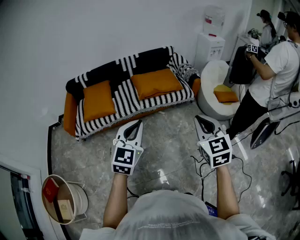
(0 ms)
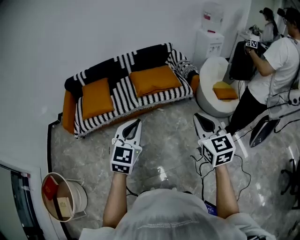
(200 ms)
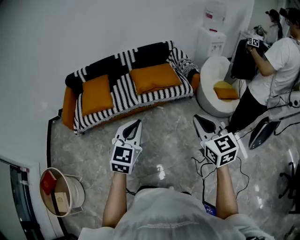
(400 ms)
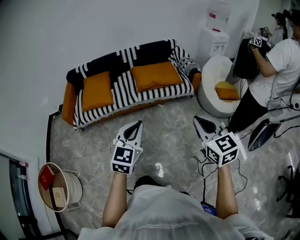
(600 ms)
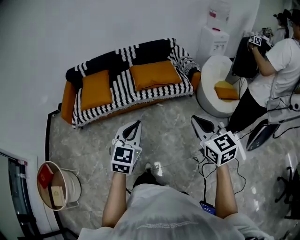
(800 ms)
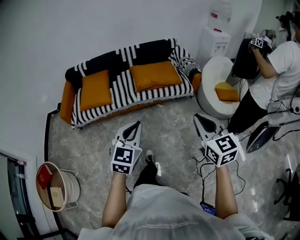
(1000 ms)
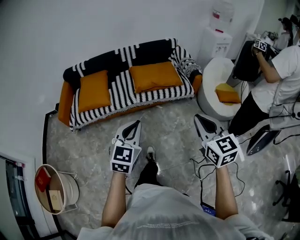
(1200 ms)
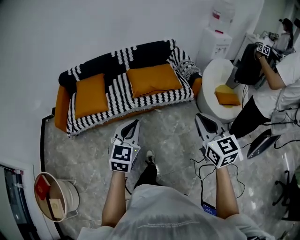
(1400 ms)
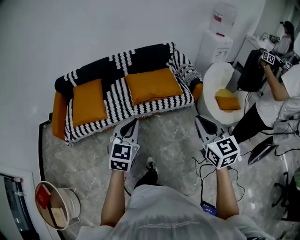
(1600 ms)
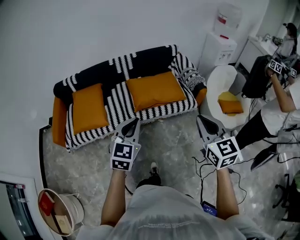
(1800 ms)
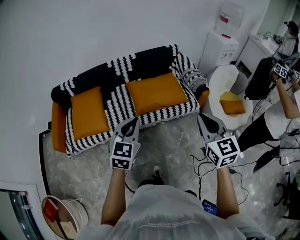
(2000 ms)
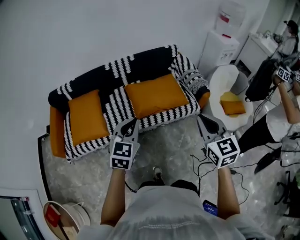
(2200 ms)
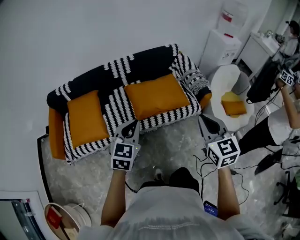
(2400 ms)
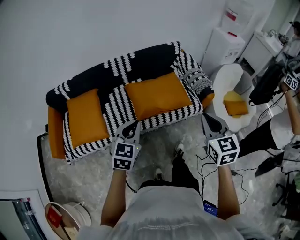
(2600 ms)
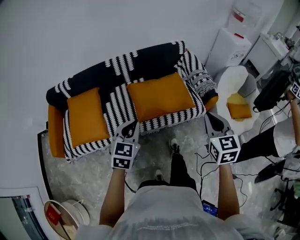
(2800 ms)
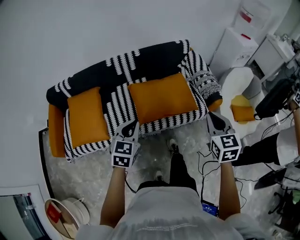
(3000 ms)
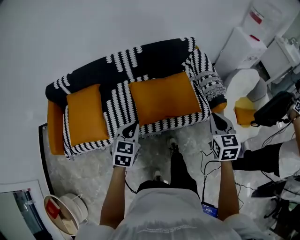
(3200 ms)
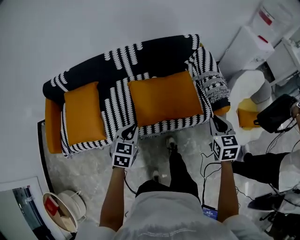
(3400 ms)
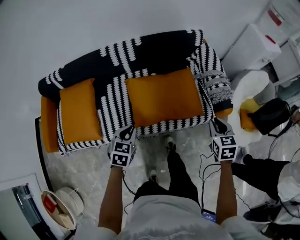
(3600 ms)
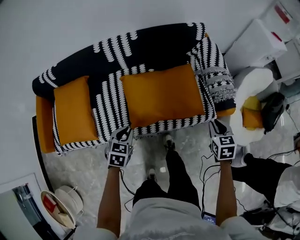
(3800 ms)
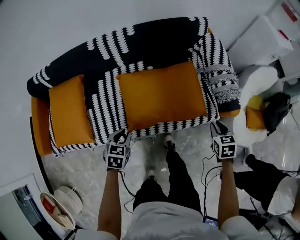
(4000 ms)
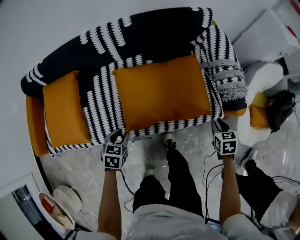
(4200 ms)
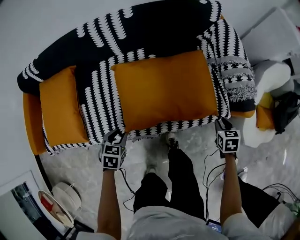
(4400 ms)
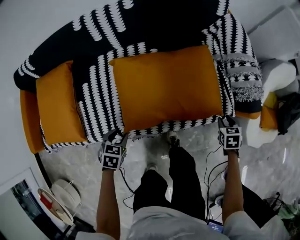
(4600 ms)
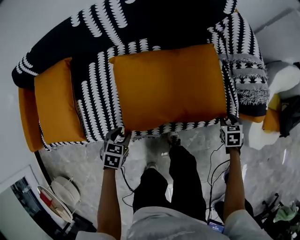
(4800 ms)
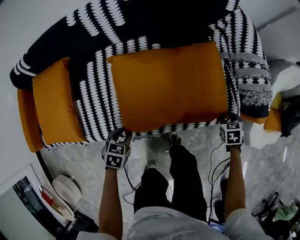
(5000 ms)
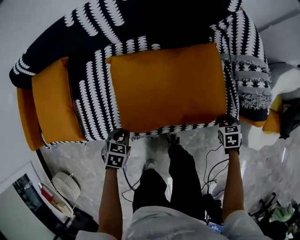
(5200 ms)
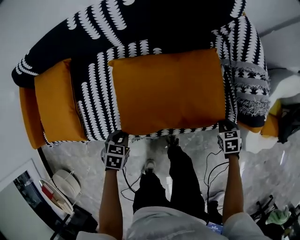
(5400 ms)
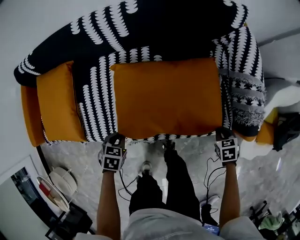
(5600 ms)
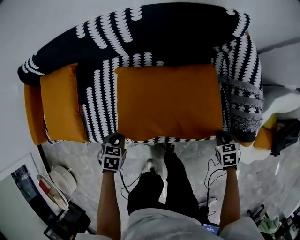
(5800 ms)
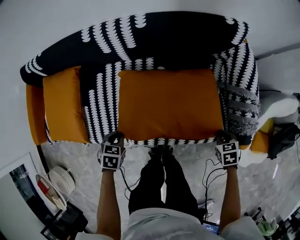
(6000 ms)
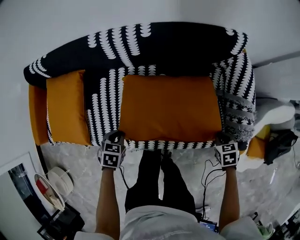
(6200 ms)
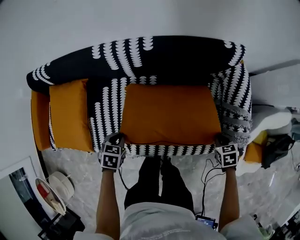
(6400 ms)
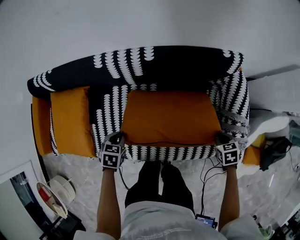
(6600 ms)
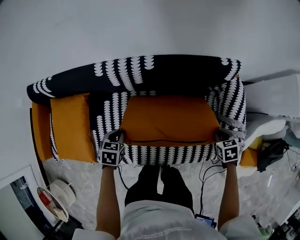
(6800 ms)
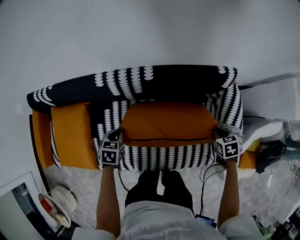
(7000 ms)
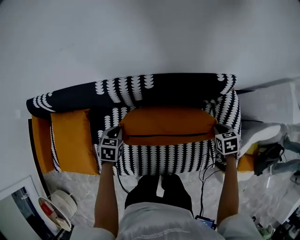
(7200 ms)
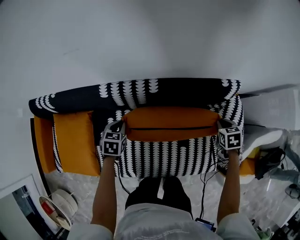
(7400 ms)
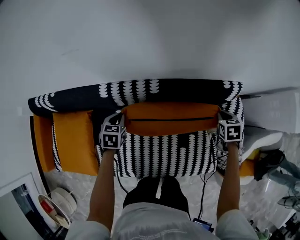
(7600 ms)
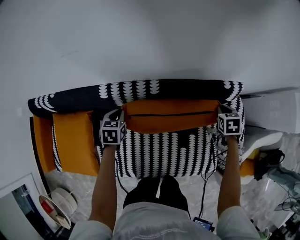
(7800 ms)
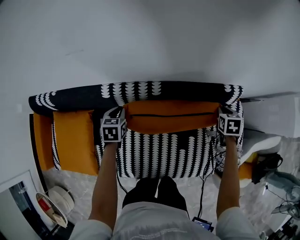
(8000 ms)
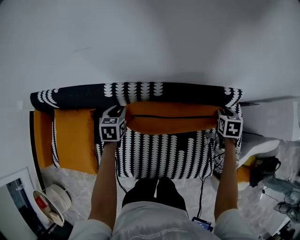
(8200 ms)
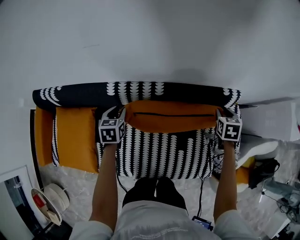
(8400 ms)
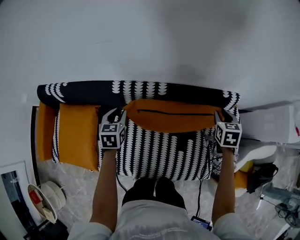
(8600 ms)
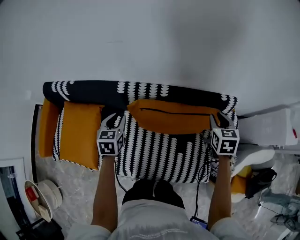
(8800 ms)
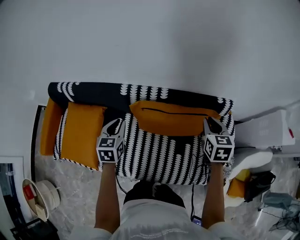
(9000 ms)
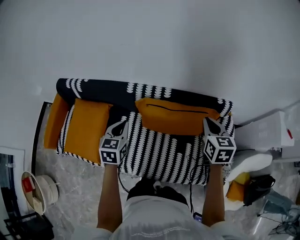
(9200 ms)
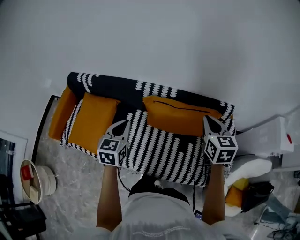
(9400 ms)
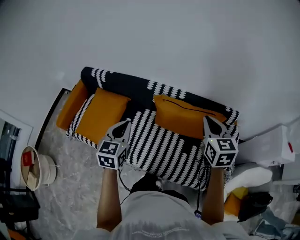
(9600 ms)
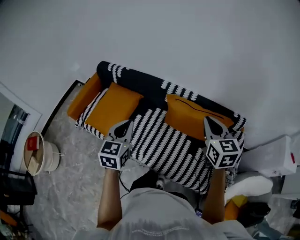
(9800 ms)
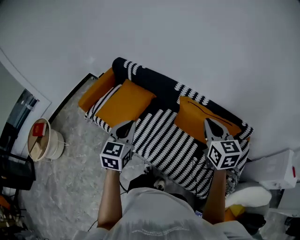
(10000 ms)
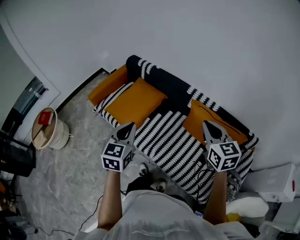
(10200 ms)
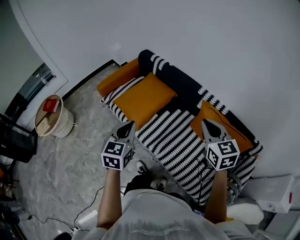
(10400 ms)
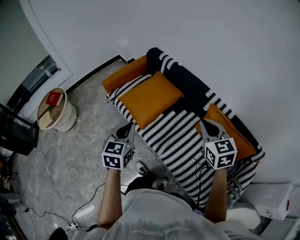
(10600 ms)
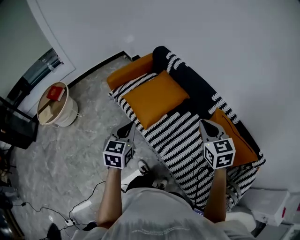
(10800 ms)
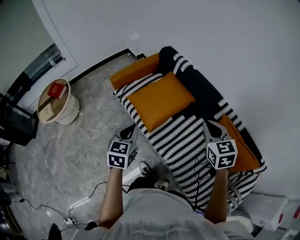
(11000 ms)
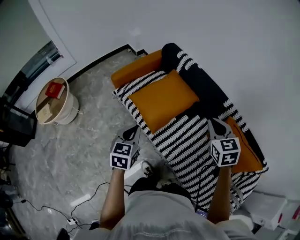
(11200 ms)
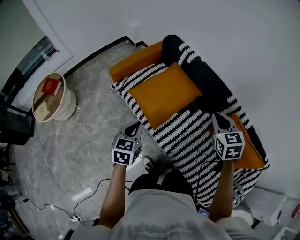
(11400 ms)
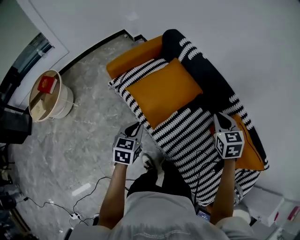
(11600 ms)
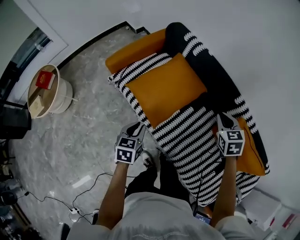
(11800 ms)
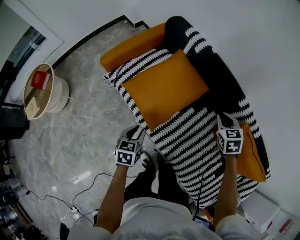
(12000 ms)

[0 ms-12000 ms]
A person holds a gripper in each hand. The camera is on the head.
0 ms to 1600 ms: Both grippers travel together forward, about 20 cm.
1600 ms to 3000 ms: Both grippers move forward, roughly 35 cm.
3000 ms to 4400 ms: The two grippers go some 40 cm downward. The left gripper angles its fingers downward, by approximately 30 degrees, and opens; the right gripper angles its fingers downward, by about 40 degrees, and opens.
4400 ms to 6000 ms: The left gripper reaches approximately 5 cm downward, then returns, and closes its fingers. The right gripper travels downward and back again, about 10 cm each way, and swivels some 20 degrees.
6000 ms to 7600 ms: The right gripper shifts by about 40 cm. The left gripper changes place by approximately 35 cm.
7600 ms to 9000 ms: The right gripper shifts some 25 cm upward and to the left, and rotates approximately 30 degrees, while the left gripper shifts some 20 cm upward and backward, and changes its angle by about 30 degrees.
9000 ms to 10400 ms: The right gripper changes place by approximately 40 cm, and swivels some 60 degrees. The left gripper shifts by about 50 cm, rotates some 30 degrees, and closes its fingers.
10400 ms to 12000 ms: The left gripper travels downward, forward and to the left by some 40 cm, rotates some 30 degrees, and opens up; the right gripper heads forward and downward, covering roughly 40 cm, and rotates some 30 degrees.

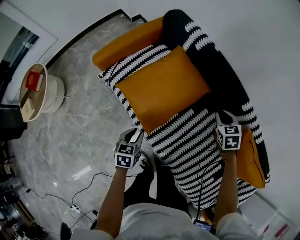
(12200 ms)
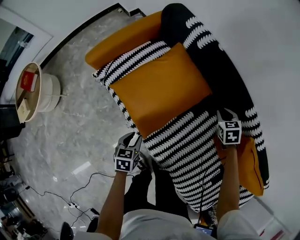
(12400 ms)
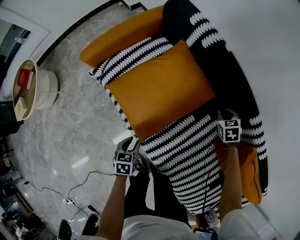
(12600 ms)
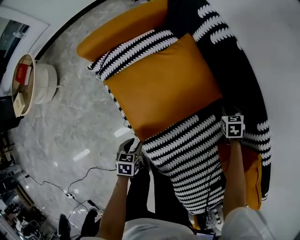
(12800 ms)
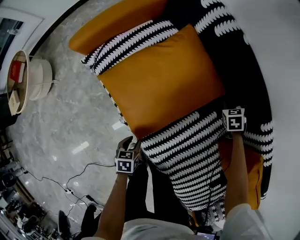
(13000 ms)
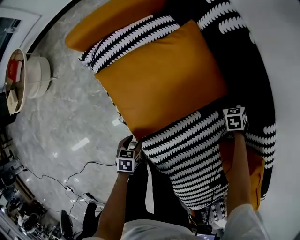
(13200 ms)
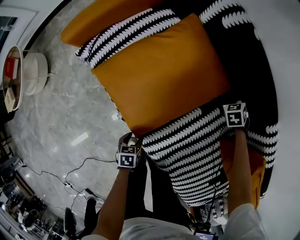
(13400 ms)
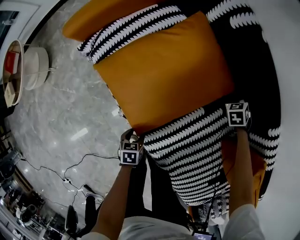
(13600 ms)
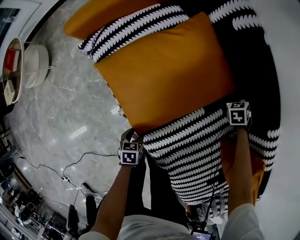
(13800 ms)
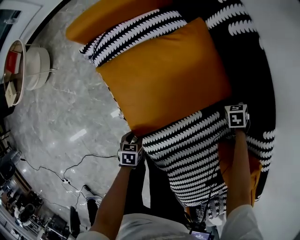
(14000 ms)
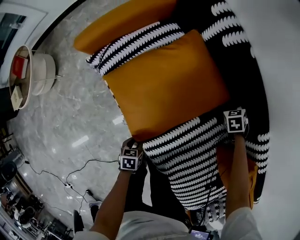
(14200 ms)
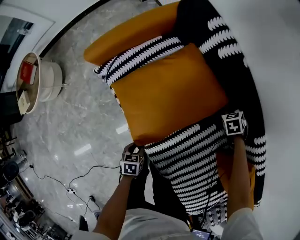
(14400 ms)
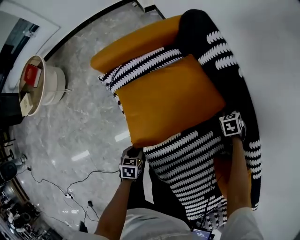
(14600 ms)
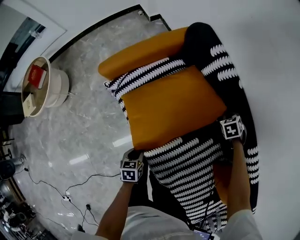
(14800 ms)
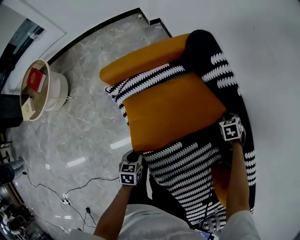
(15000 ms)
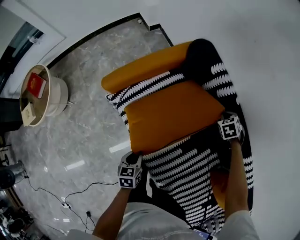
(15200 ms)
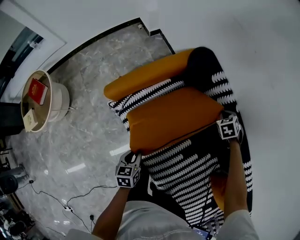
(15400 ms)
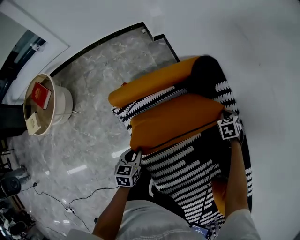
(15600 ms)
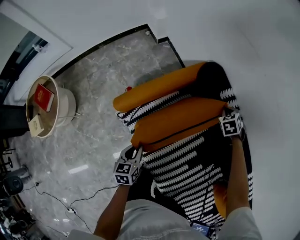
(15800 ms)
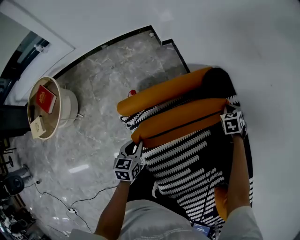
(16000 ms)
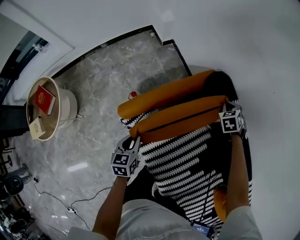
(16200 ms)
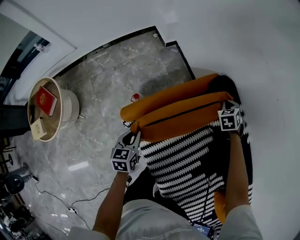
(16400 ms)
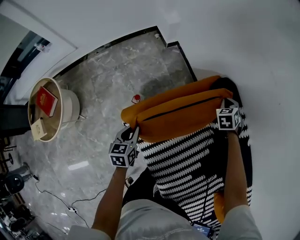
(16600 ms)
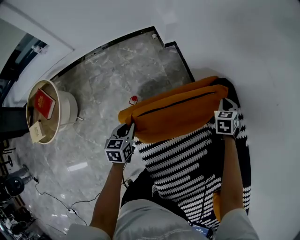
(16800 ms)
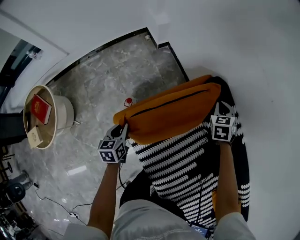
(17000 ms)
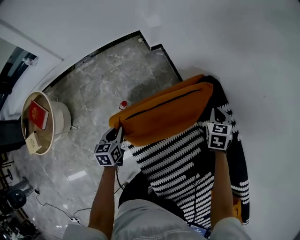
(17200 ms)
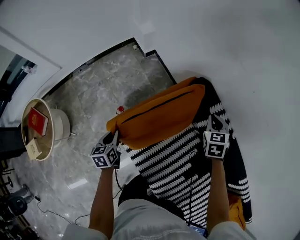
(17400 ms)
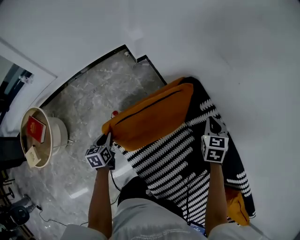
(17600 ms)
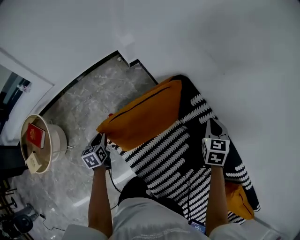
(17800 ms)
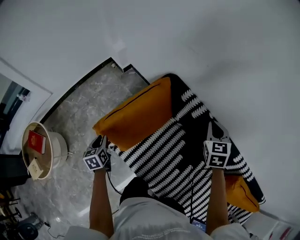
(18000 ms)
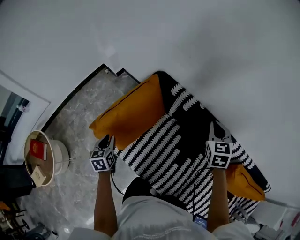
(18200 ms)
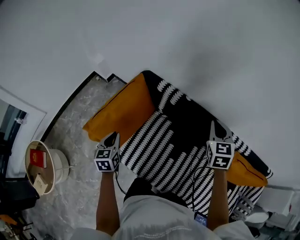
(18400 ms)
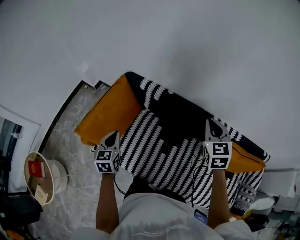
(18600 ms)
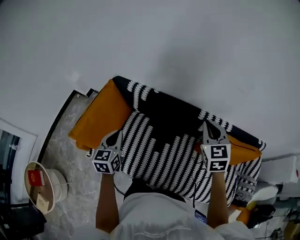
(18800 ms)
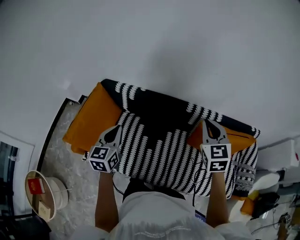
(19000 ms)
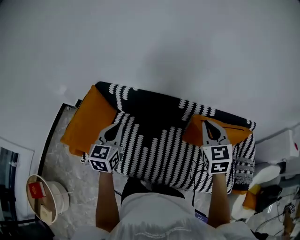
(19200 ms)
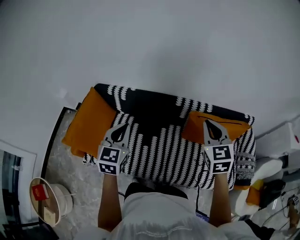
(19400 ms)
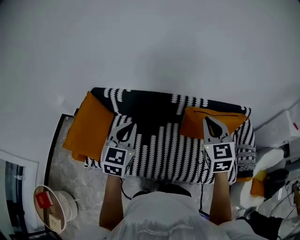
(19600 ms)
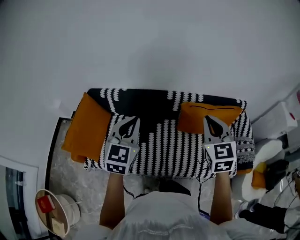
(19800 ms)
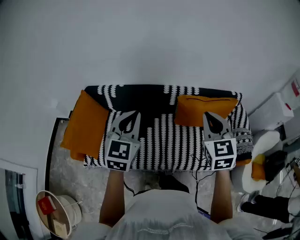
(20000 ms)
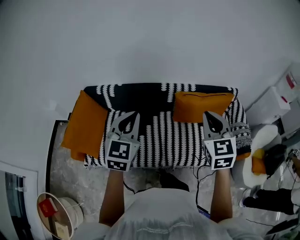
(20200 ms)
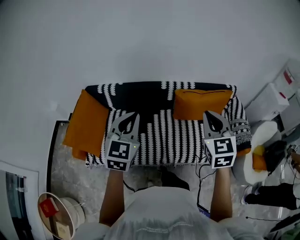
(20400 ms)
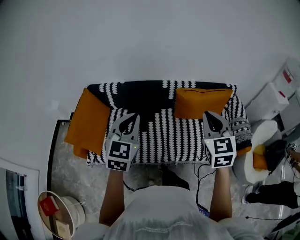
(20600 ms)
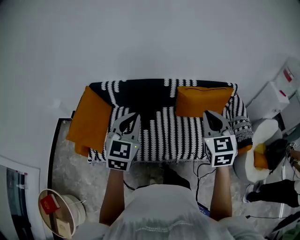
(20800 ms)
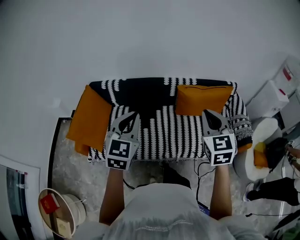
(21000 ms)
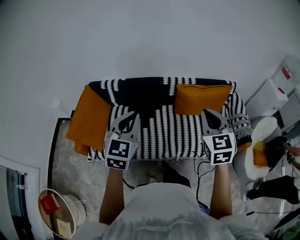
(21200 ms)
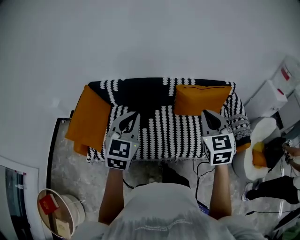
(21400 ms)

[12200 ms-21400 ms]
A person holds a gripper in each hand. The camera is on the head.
12200 ms to 13800 ms: The right gripper travels downward and forward by approximately 35 cm, and swivels approximately 20 degrees. The left gripper travels downward by about 25 cm, and turns by approximately 30 degrees.
13800 ms to 15200 ms: Both grippers move upward, to the left and forward, some 30 cm. The left gripper closes up.
15200 ms to 16800 ms: The two grippers go some 35 cm to the left and forward.
16800 ms to 18400 ms: The left gripper heads to the right and upward, covering roughly 25 cm, and swivels about 30 degrees. The right gripper moves backward, to the right and upward, approximately 50 cm, and swivels about 40 degrees.
18400 ms to 19800 ms: The pair of grippers is taken approximately 40 cm. The right gripper changes its angle by about 20 degrees, while the left gripper swivels about 50 degrees.
19800 ms to 21400 ms: Both grippers move backward, approximately 15 cm.

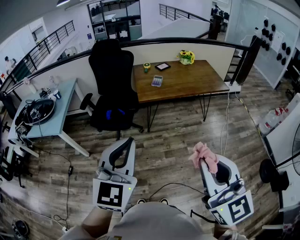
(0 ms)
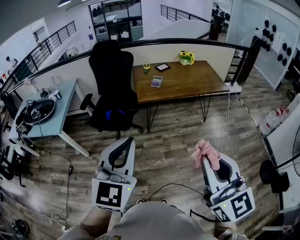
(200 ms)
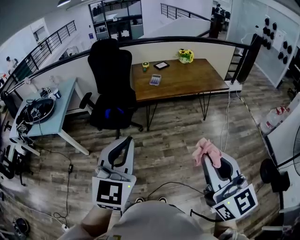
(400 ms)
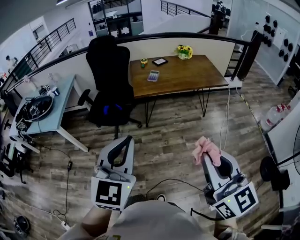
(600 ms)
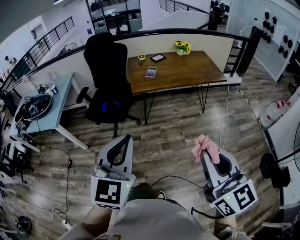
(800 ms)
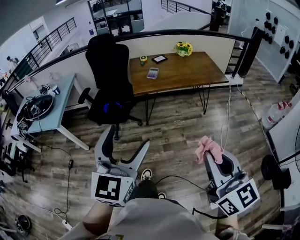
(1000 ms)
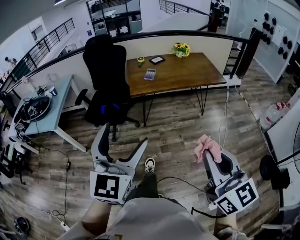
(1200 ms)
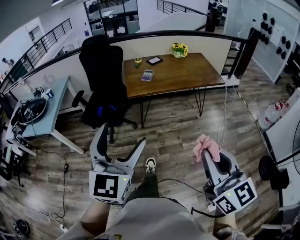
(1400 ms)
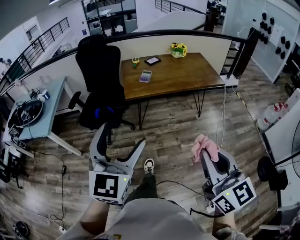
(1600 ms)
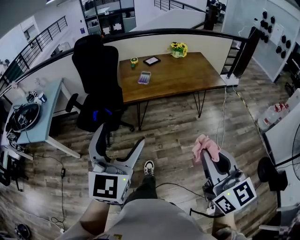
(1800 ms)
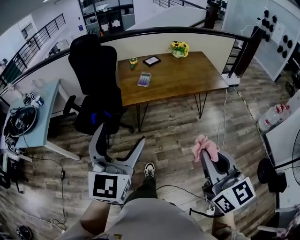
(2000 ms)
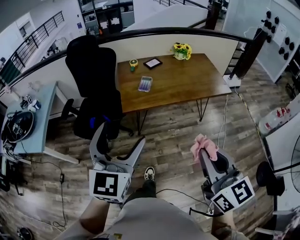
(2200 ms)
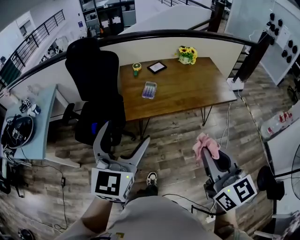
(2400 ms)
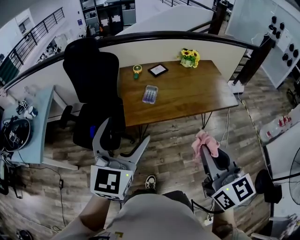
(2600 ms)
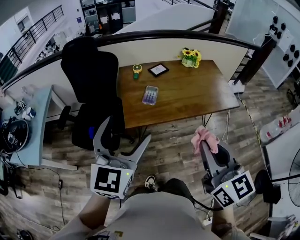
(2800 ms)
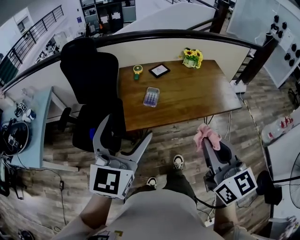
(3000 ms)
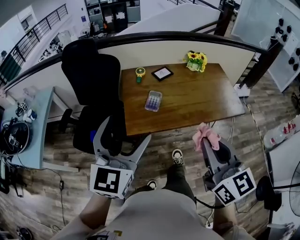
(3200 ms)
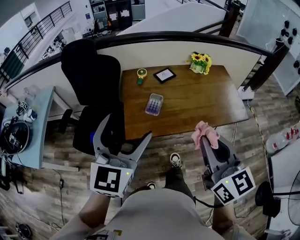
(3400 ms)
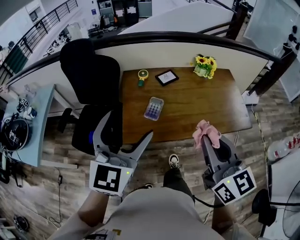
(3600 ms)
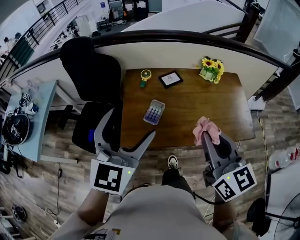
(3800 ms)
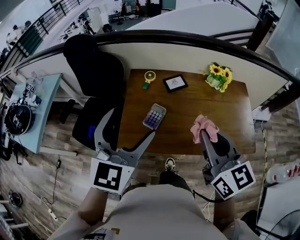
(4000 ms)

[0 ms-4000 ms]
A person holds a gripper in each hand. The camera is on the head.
0 ms to 1400 ms: The right gripper travels to the right and downward by about 15 cm; the left gripper travels to the right by some 10 cm, and opens up.
1400 ms to 2600 ms: Both grippers travel together forward, approximately 40 cm.
2600 ms to 4000 ms: The grippers both shift forward by approximately 35 cm.
